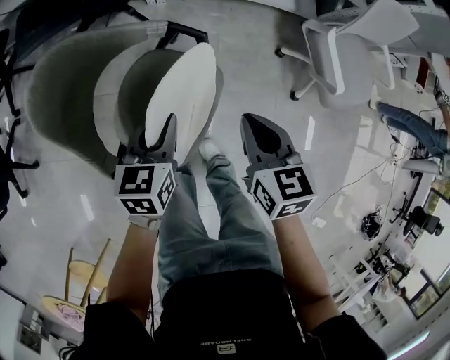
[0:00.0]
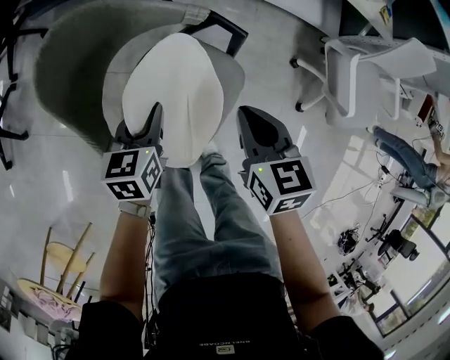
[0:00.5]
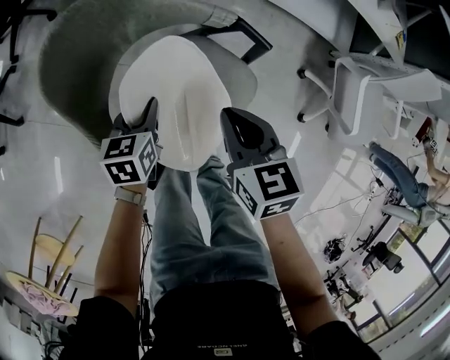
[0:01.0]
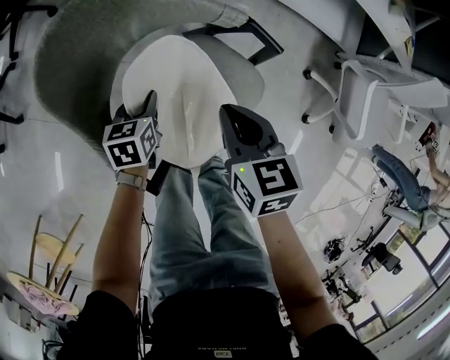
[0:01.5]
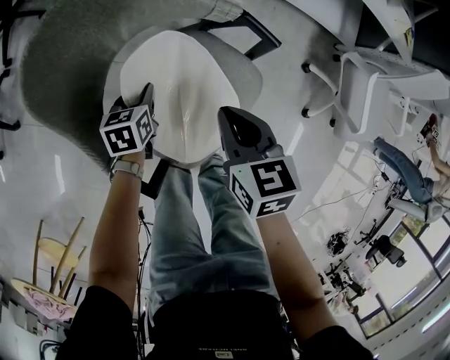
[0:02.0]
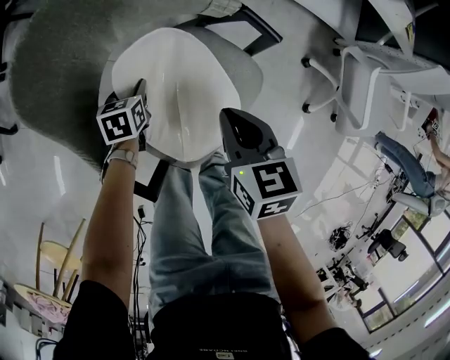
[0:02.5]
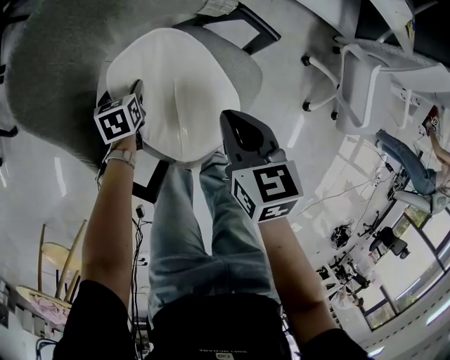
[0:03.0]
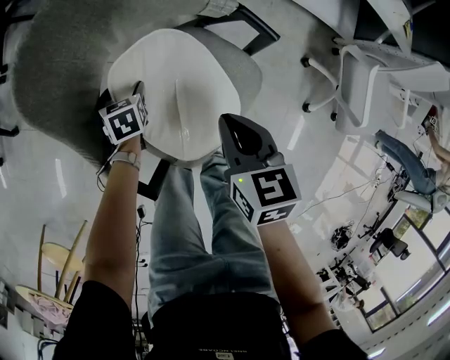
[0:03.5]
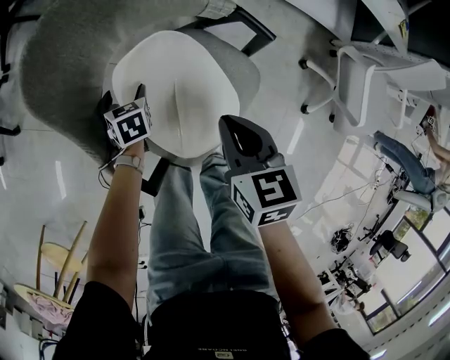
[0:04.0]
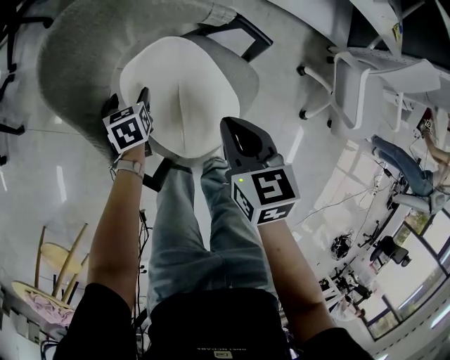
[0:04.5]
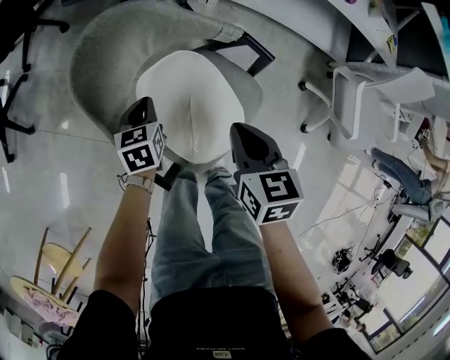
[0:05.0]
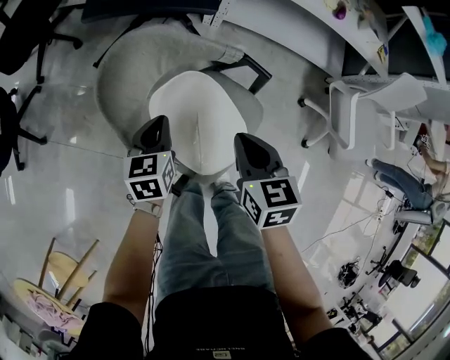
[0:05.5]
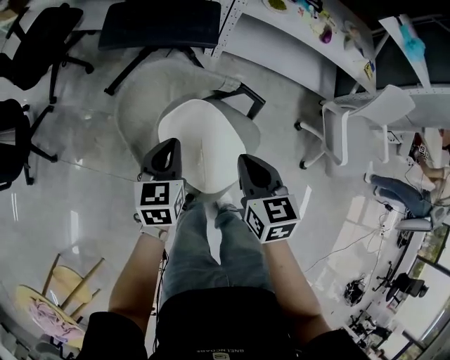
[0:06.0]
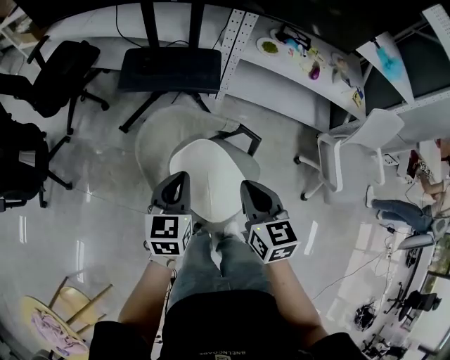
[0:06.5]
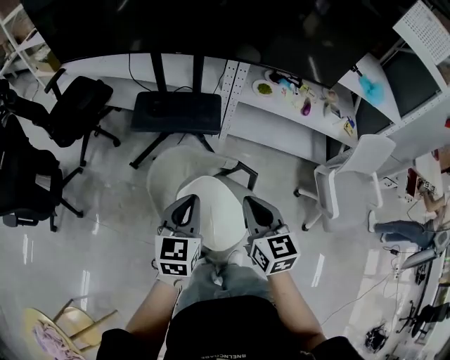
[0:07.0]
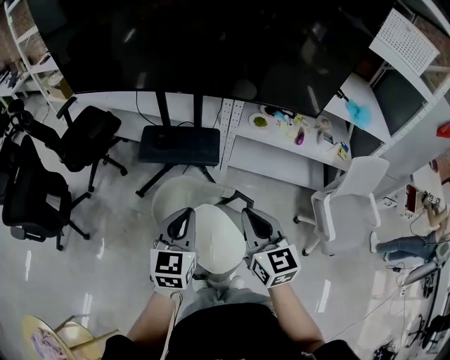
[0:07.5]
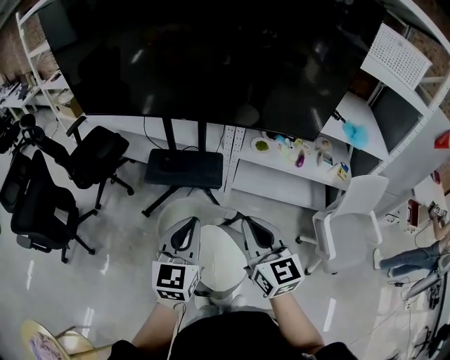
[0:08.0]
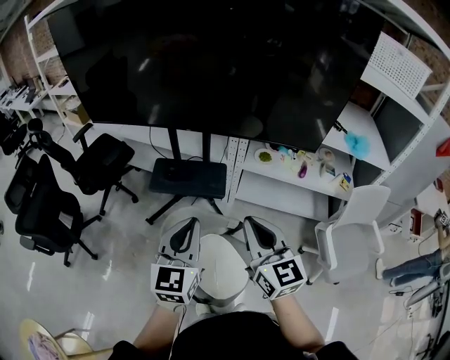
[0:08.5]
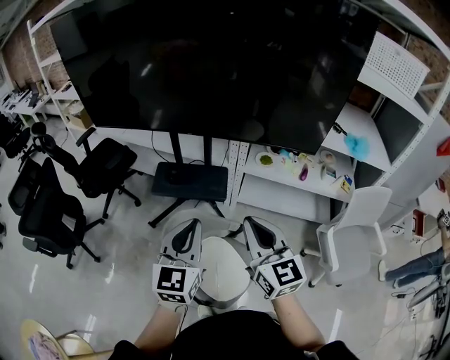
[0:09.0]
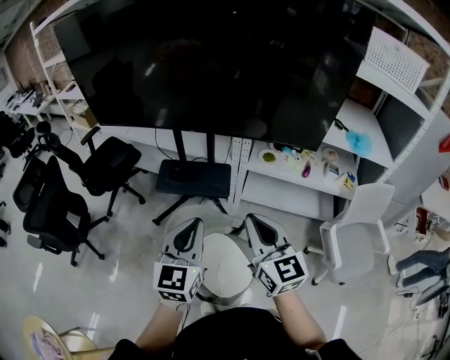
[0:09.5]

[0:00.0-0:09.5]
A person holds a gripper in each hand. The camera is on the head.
0:00.0 to 0:02.0: The right gripper moves to the left, downward and forward, about 20 cm. The left gripper travels downward and to the left by about 25 cm, and swivels about 20 degrees.
0:02.0 to 0:04.0: The left gripper travels to the left by about 5 cm, swivels roughly 20 degrees, and opens its fingers.
0:04.0 to 0:05.5: The right gripper moves upward, roughly 10 cm. Meanwhile the left gripper heads upward, covering about 20 cm, swivels about 30 degrees, and closes.
0:05.5 to 0:07.5: The two grippers go some 30 cm upward. The left gripper rotates approximately 30 degrees, while the right gripper tilts its fingers roughly 30 degrees upward.
0:07.5 to 0:09.5: Both grippers move upward, roughly 10 cm.

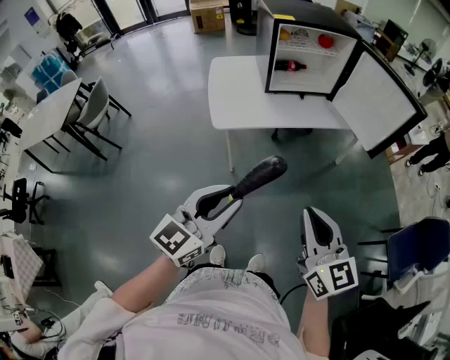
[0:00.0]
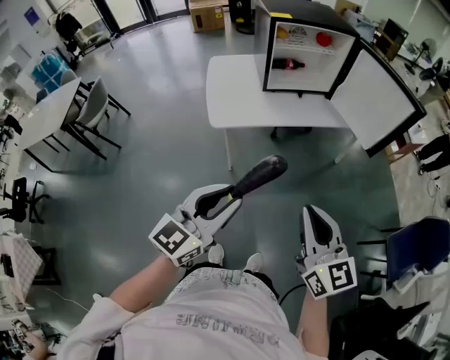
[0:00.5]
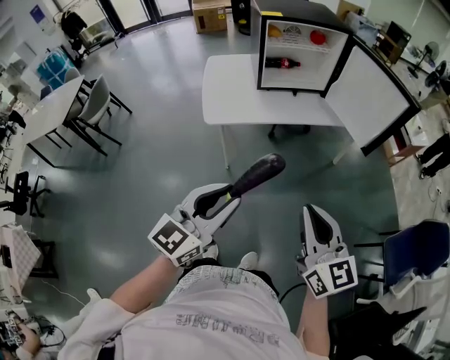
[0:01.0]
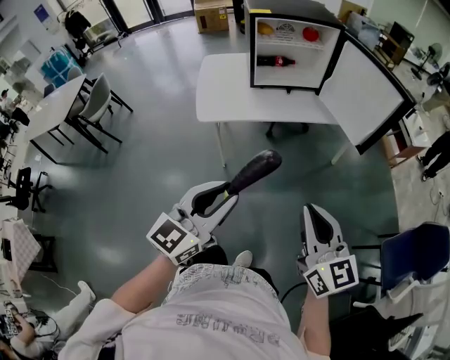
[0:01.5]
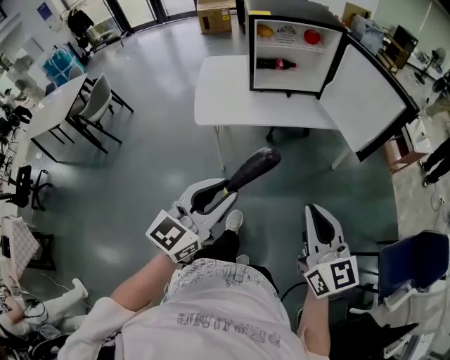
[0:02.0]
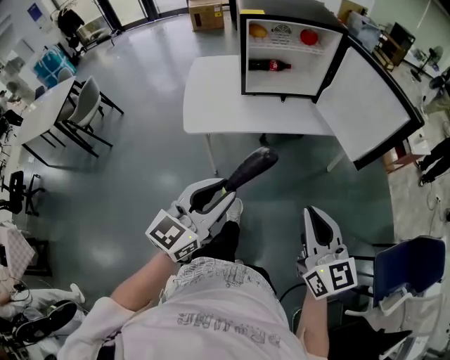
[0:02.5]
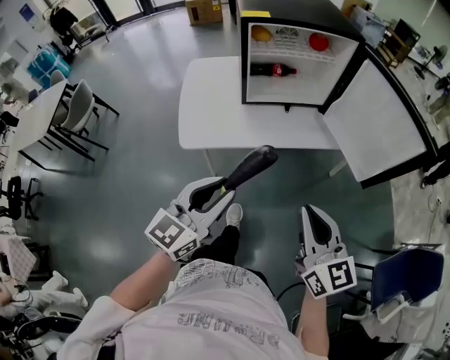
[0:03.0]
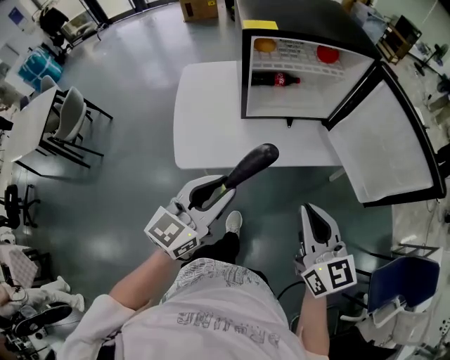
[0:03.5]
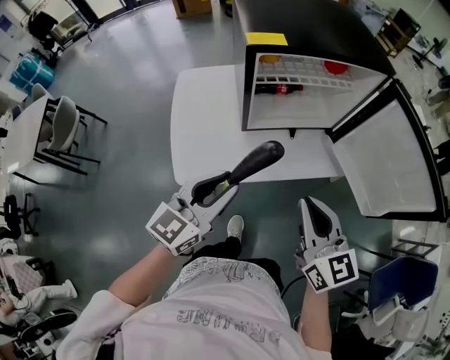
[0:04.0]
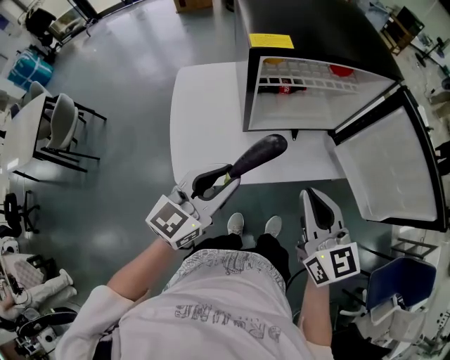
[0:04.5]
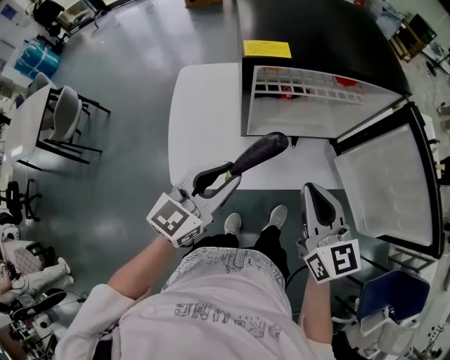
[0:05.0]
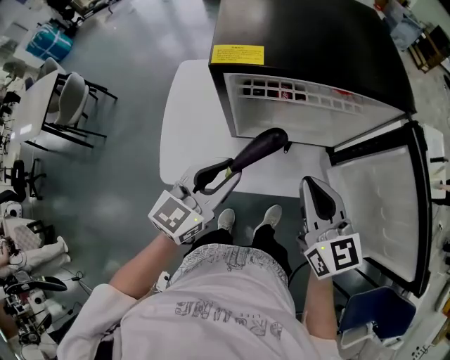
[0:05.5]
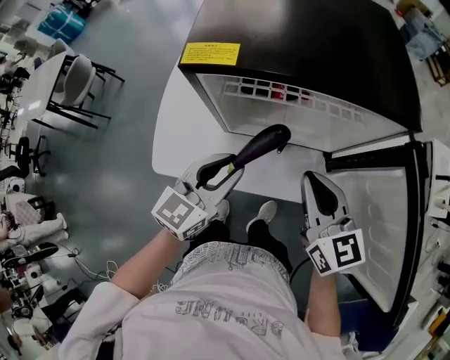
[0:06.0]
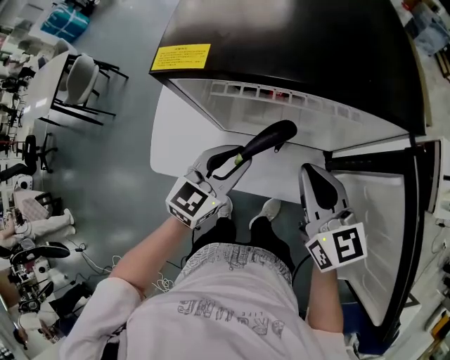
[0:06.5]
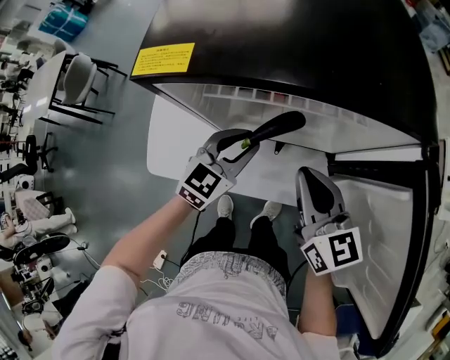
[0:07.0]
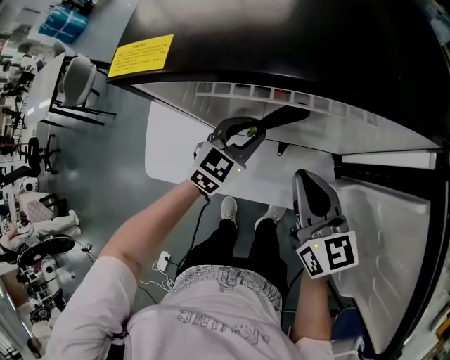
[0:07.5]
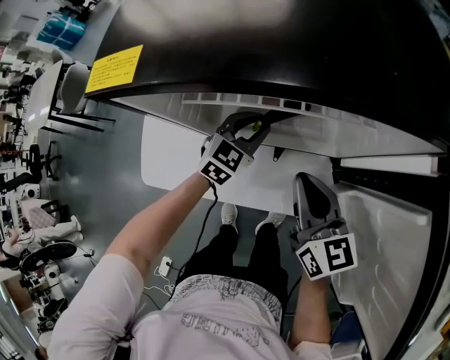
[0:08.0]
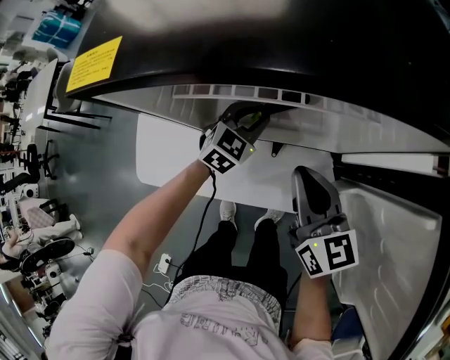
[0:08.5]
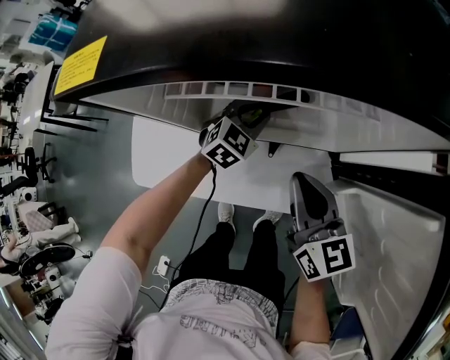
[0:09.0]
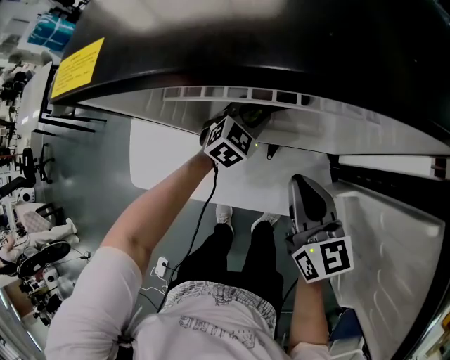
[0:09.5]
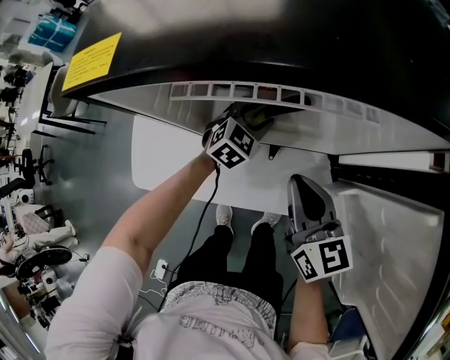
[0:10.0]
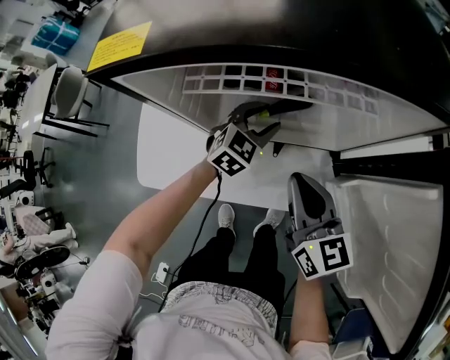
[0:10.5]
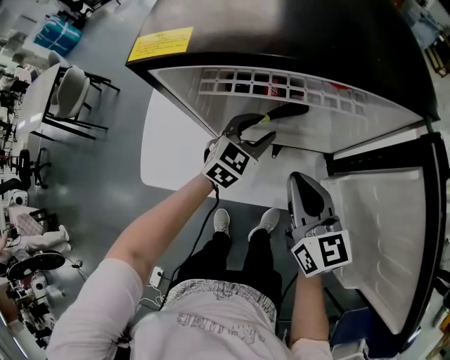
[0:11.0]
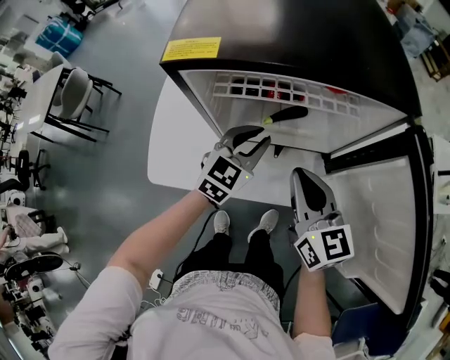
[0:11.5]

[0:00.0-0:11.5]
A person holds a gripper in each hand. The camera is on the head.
0:00.0 to 0:02.0: Both grippers travel together to the right, about 15 cm.
0:02.0 to 0:04.0: Both grippers move forward, roughly 35 cm.
0:04.0 to 0:06.0: Both grippers travel together forward and to the right, roughly 20 cm.
0:06.0 to 0:07.5: The left gripper is displaced downward and forward by about 20 cm, and changes its angle by approximately 20 degrees. The right gripper travels downward by about 10 cm.
0:07.5 to 0:09.5: The left gripper shifts approximately 10 cm downward and forward; the right gripper is displaced downward by roughly 5 cm.
0:09.5 to 0:11.5: The left gripper heads upward and backward, covering roughly 20 cm, and swivels some 20 degrees; the right gripper goes approximately 10 cm upward.

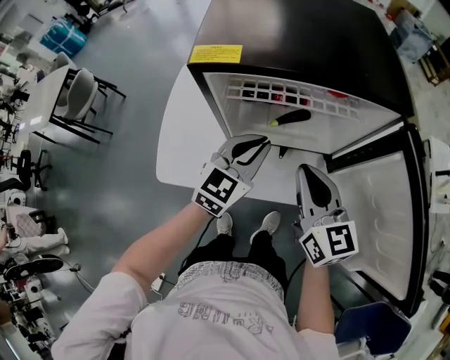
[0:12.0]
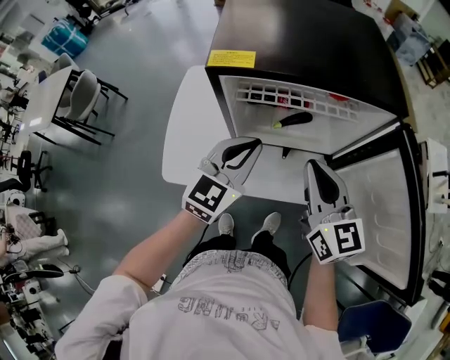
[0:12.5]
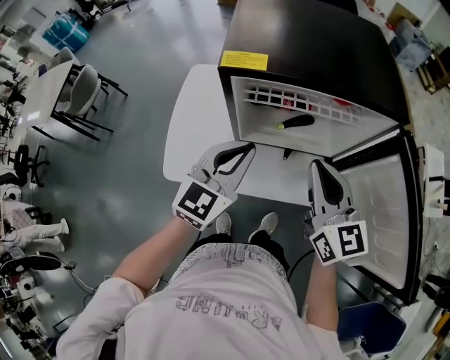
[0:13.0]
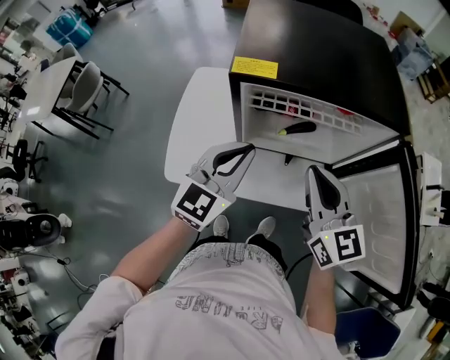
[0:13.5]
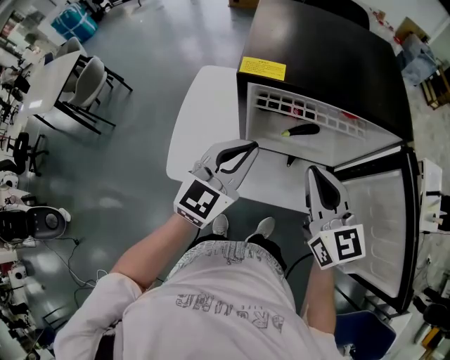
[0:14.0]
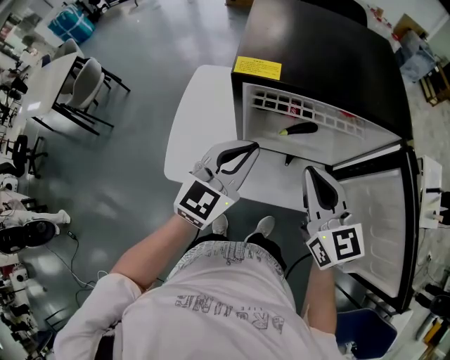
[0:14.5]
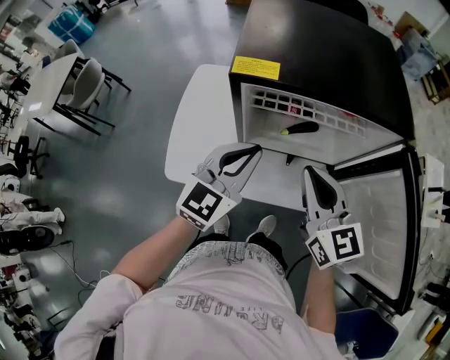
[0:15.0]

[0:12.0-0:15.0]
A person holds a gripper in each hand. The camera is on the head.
0:12.0 to 0:13.5: The left gripper shifts some 10 cm upward and to the left. The right gripper shifts approximately 5 cm upward.
0:13.5 to 0:15.0: The grippers move only a little.

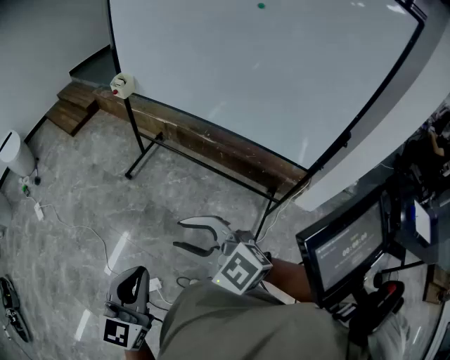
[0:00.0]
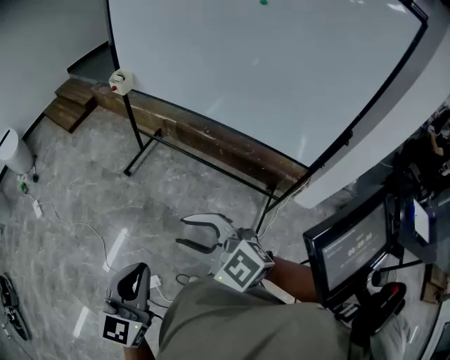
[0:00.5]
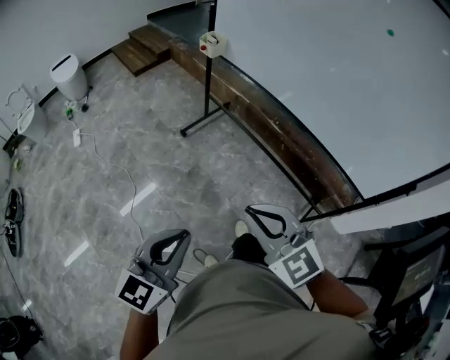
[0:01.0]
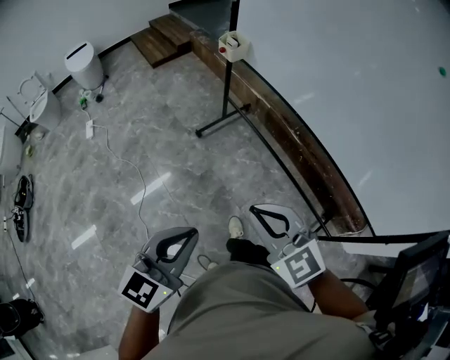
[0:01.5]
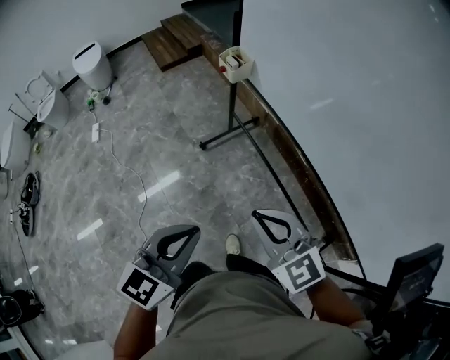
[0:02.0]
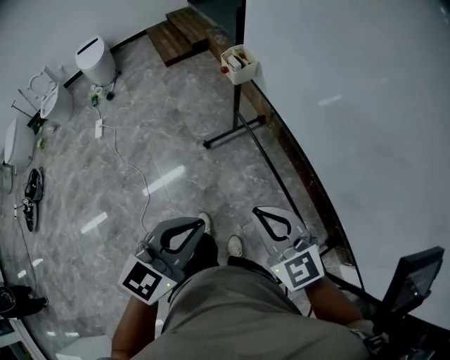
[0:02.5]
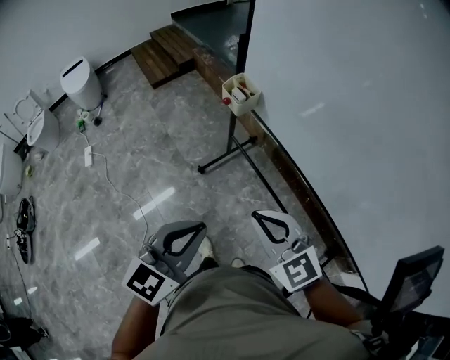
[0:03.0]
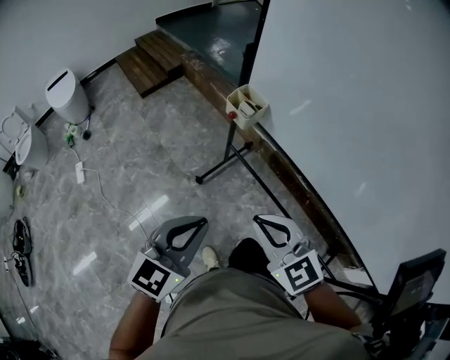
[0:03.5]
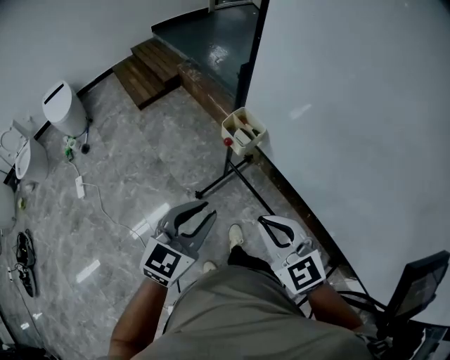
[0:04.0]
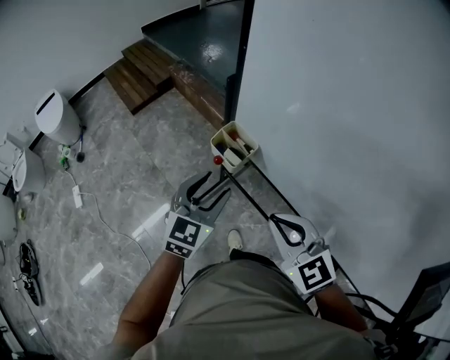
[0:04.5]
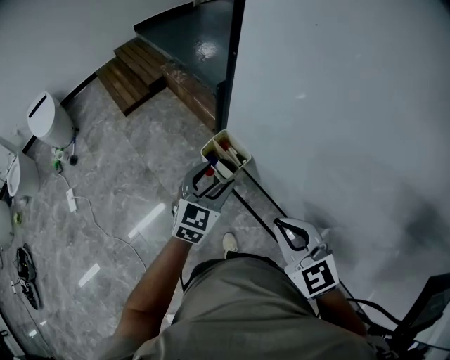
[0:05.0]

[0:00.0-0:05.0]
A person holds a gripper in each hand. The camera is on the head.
0:00.0 to 0:02.5: The two grippers go approximately 40 cm forward. The right gripper closes its fingers.
0:02.5 to 0:05.0: The right gripper travels forward by approximately 35 cm, and swivels approximately 20 degrees. The left gripper moves forward, some 50 cm, and opens its fingers.
